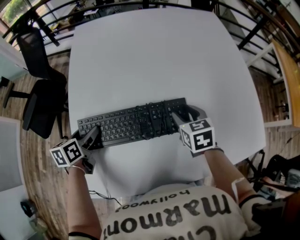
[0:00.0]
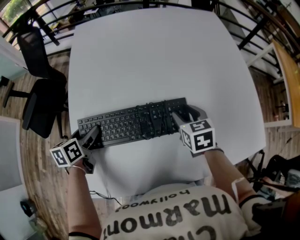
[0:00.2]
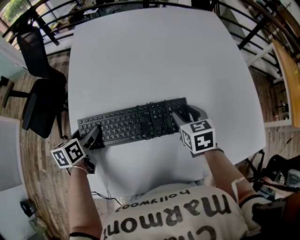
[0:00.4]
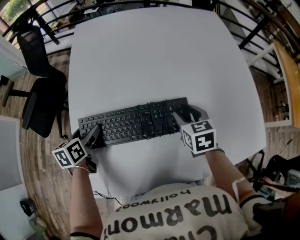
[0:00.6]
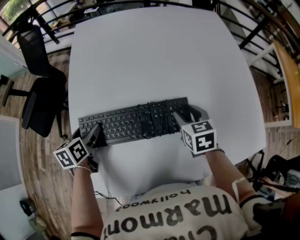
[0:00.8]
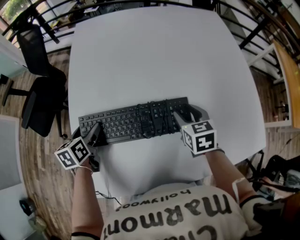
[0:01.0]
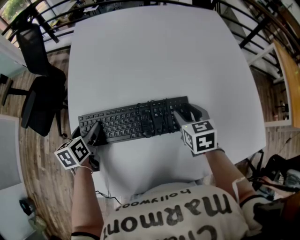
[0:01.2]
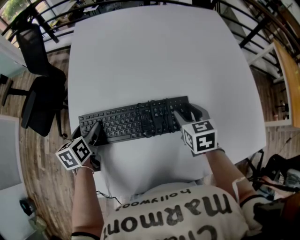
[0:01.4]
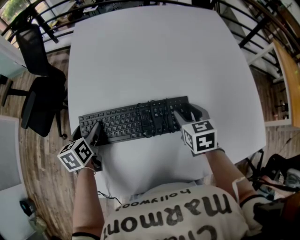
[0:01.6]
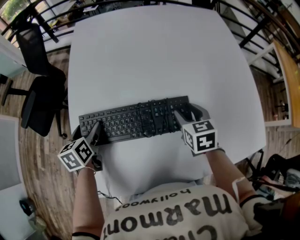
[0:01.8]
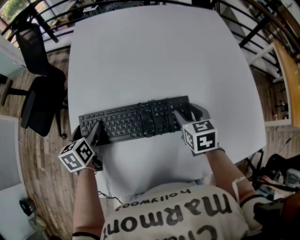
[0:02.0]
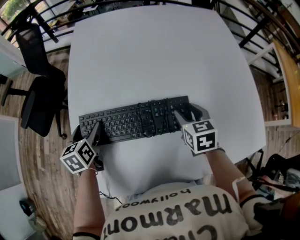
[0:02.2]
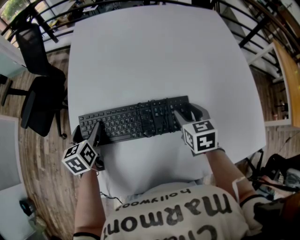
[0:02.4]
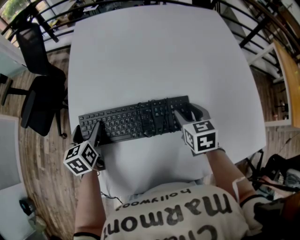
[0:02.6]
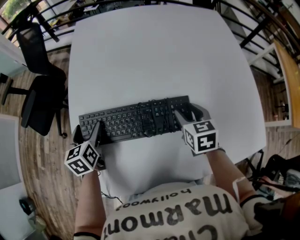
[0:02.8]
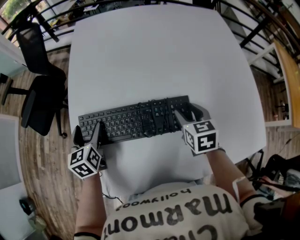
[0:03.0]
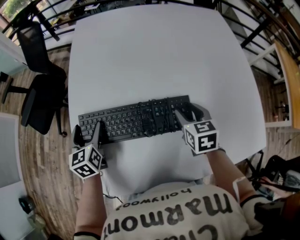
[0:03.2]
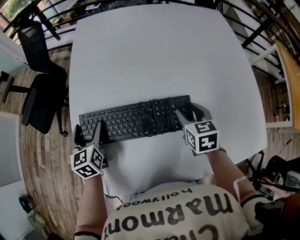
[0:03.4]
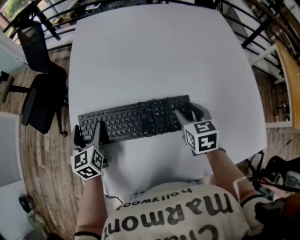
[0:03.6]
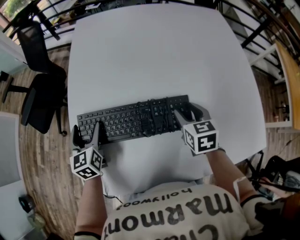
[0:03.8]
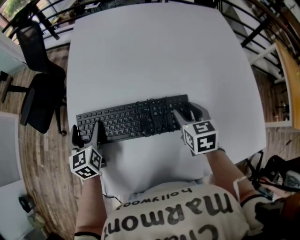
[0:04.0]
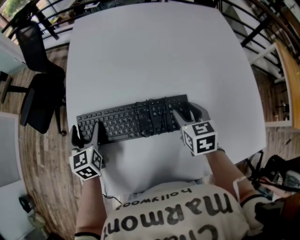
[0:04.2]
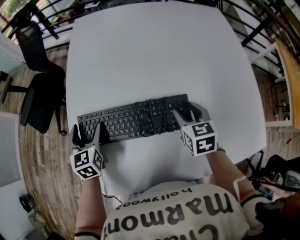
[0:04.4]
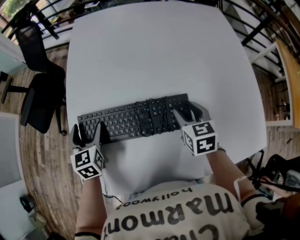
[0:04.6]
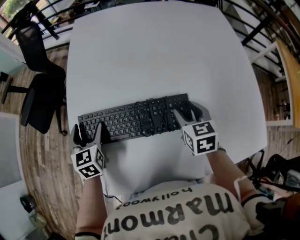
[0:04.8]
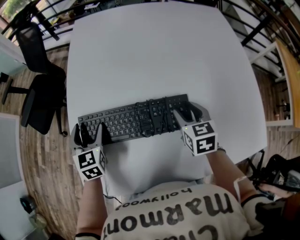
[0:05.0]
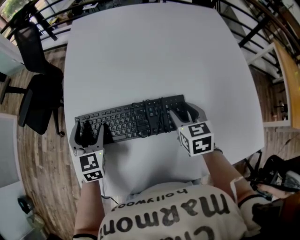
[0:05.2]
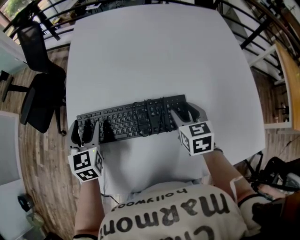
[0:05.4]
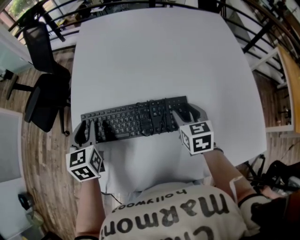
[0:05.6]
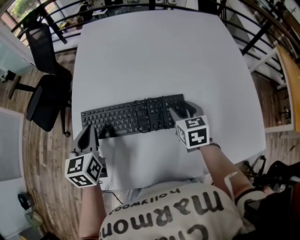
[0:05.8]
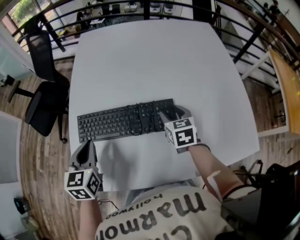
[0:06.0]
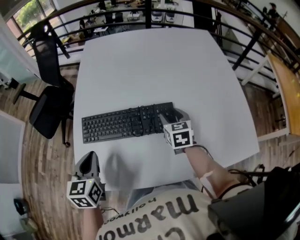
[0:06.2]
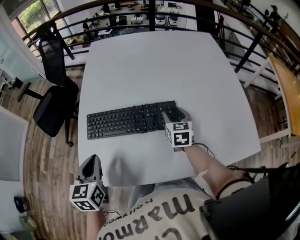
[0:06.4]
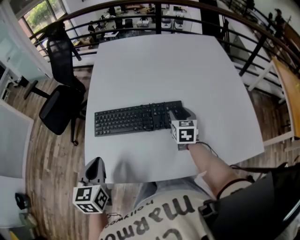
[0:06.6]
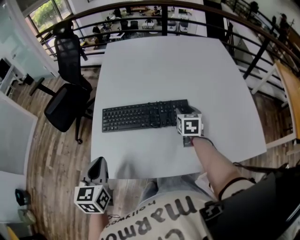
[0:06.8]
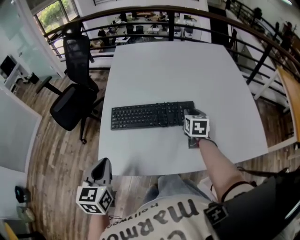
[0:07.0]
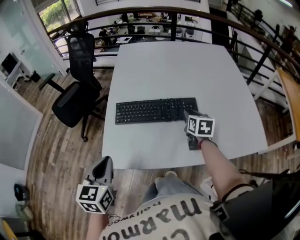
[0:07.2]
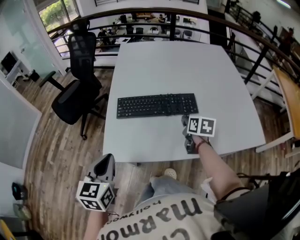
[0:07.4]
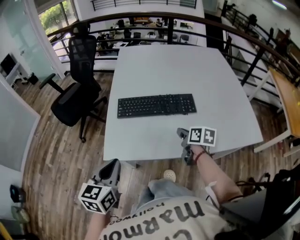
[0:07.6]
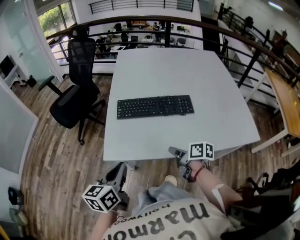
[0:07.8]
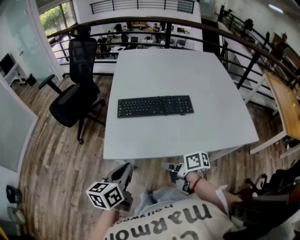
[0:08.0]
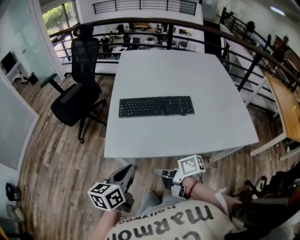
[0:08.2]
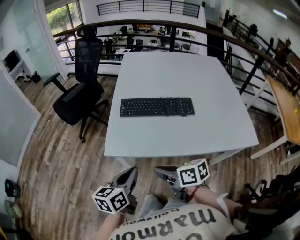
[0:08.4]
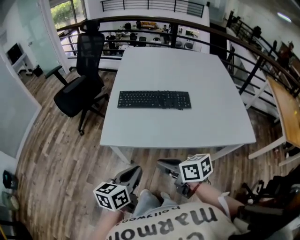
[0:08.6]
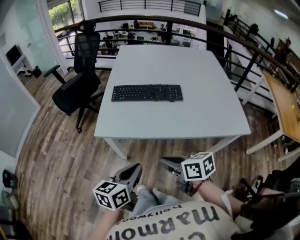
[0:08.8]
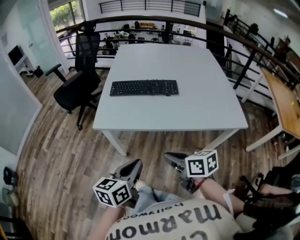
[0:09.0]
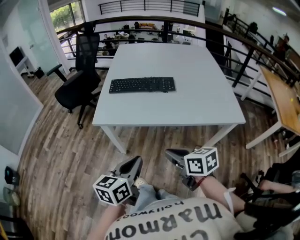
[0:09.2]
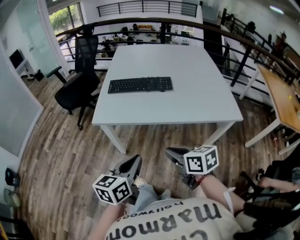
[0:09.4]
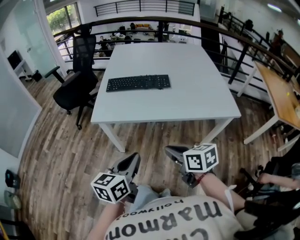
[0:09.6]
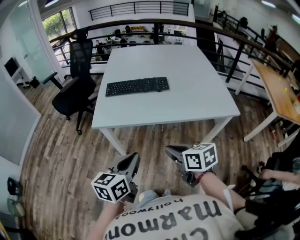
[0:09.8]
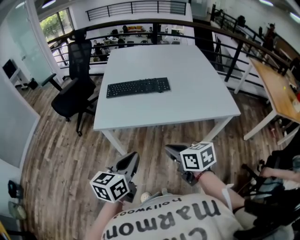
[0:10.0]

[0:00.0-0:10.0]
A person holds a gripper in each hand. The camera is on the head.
0:00.0 to 0:01.4: The grippers make only small movements.
0:01.4 to 0:02.8: There are only small adjustments of the grippers.
0:02.8 to 0:04.2: The grippers stay close to where they were, moving slightly.
0:04.2 to 0:05.8: The left gripper travels upward by roughly 5 cm, and closes.
0:05.8 to 0:07.2: The left gripper moves backward, some 25 cm. Meanwhile the right gripper is displaced backward by about 5 cm, and closes its fingers.
0:07.2 to 0:08.6: The left gripper moves backward and to the right, roughly 20 cm, and rotates about 30 degrees; the right gripper shifts about 40 cm backward and to the left, and swivels approximately 50 degrees.
0:08.6 to 0:10.0: The right gripper heads backward and to the right, covering some 15 cm, while the left gripper moves backward and upward, approximately 10 cm.

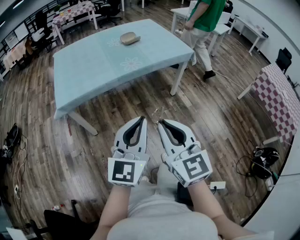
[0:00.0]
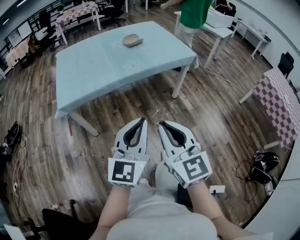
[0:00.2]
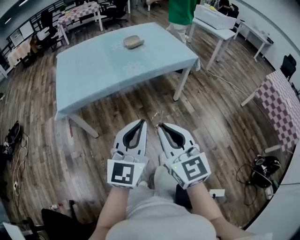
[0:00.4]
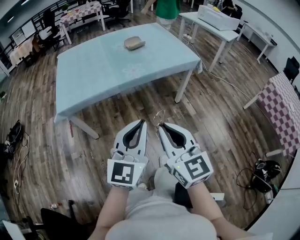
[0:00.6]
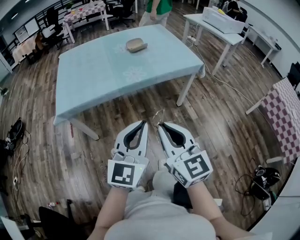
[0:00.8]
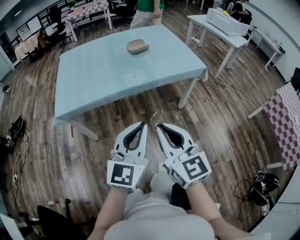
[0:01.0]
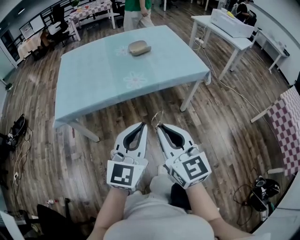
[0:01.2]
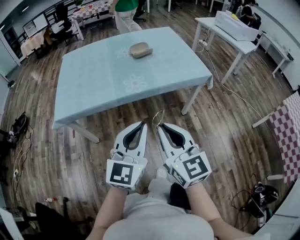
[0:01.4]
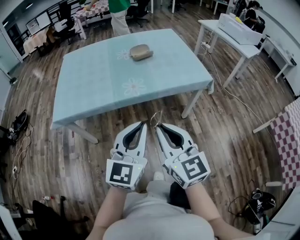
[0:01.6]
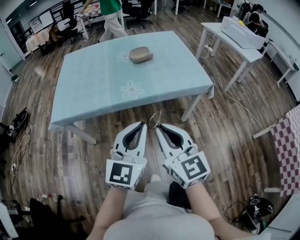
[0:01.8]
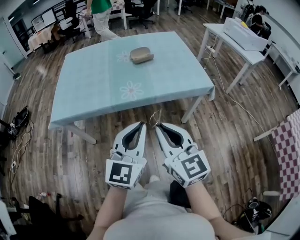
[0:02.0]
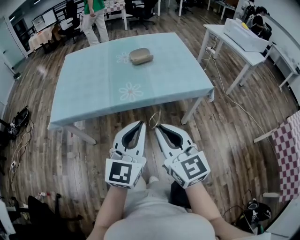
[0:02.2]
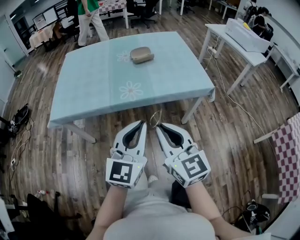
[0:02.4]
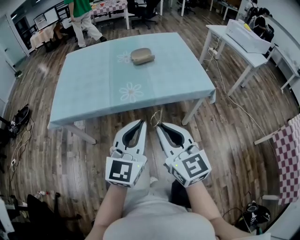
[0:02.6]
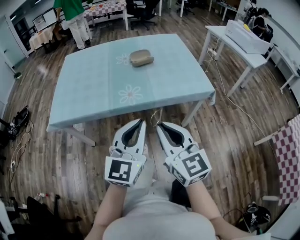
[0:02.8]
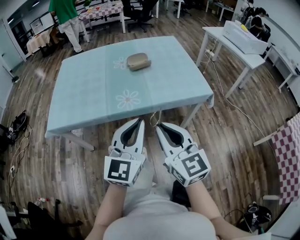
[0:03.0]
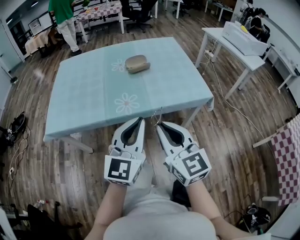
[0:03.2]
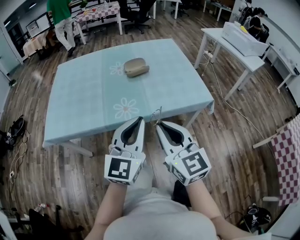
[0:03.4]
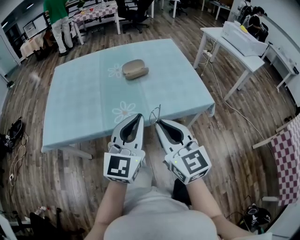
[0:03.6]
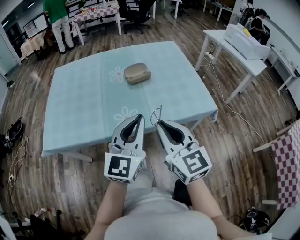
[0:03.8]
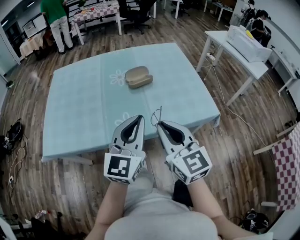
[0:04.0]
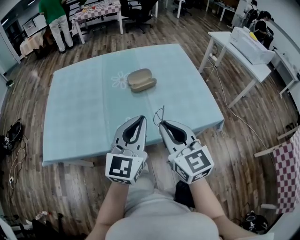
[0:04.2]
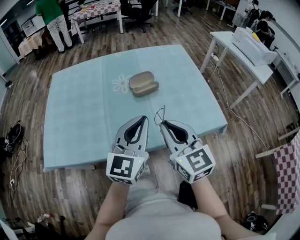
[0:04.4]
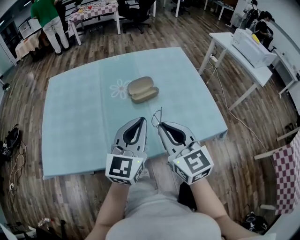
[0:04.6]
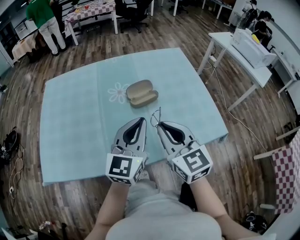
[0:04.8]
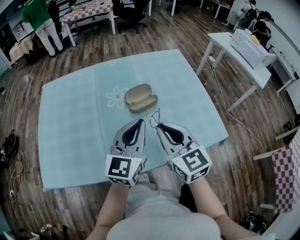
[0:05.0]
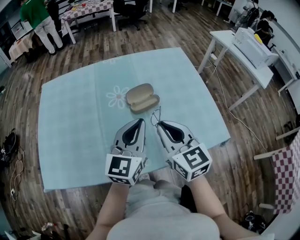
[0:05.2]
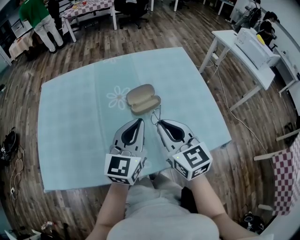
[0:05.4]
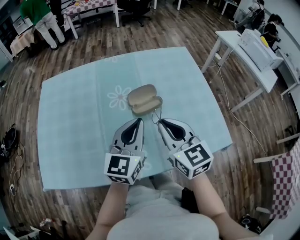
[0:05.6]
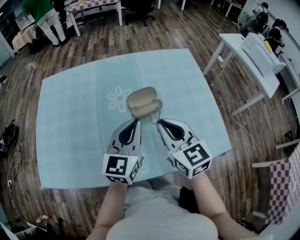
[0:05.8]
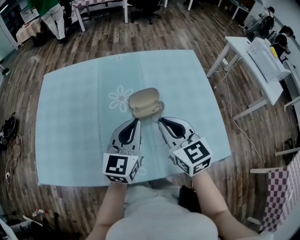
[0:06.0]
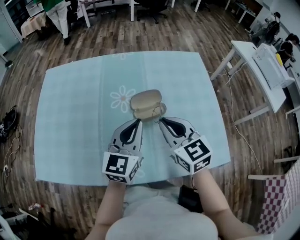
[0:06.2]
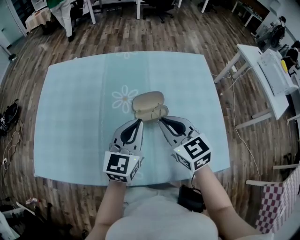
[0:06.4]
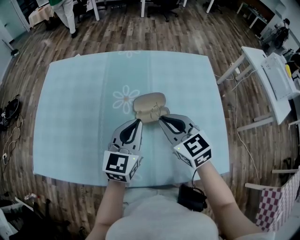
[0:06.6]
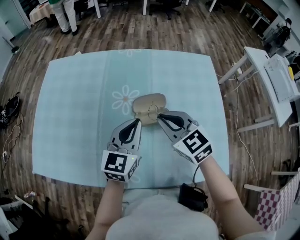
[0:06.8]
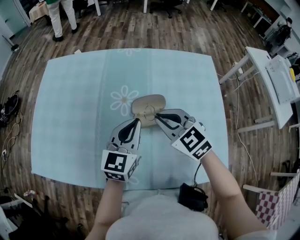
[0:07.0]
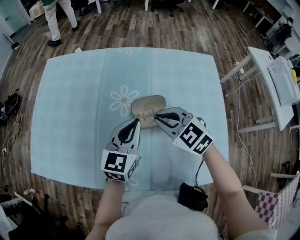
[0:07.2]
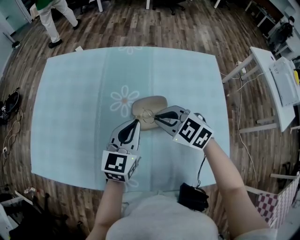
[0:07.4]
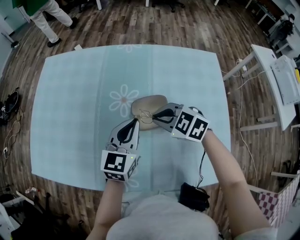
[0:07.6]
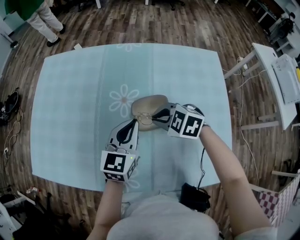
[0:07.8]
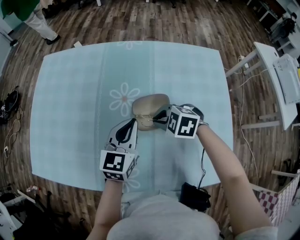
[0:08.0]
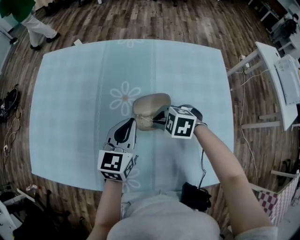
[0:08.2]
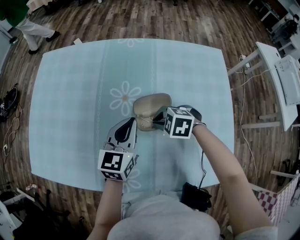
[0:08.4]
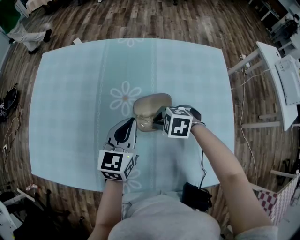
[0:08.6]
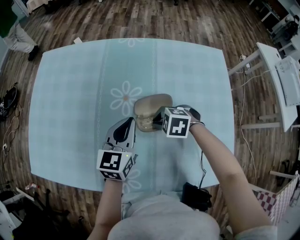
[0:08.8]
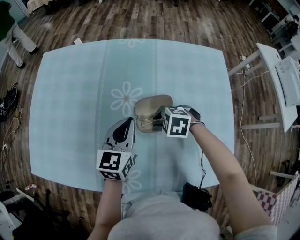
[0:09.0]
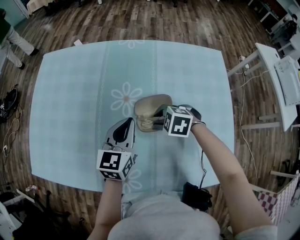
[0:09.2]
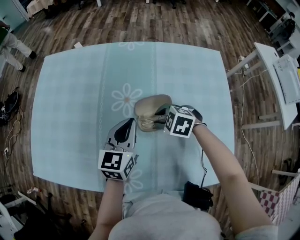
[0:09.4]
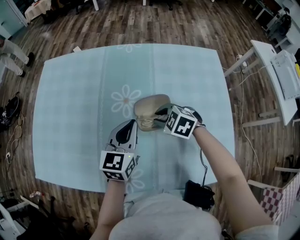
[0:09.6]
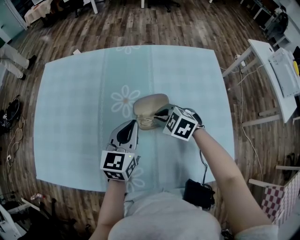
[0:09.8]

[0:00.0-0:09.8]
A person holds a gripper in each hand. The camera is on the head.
0:00.0 to 0:01.4: The two grippers go about 20 cm forward and to the right.
0:01.4 to 0:02.8: Both grippers move forward and to the right, about 10 cm.
0:02.8 to 0:04.2: Both grippers move forward, some 25 cm.
0:04.2 to 0:05.6: Both grippers move forward, approximately 20 cm.
0:05.6 to 0:07.0: Both grippers move forward and downward, some 15 cm. The right gripper rotates some 40 degrees.
0:07.0 to 0:08.4: The left gripper shifts approximately 5 cm downward. The right gripper goes roughly 15 cm downward, and angles its fingers downward, by some 30 degrees.
0:08.4 to 0:09.8: The right gripper opens and closes again.

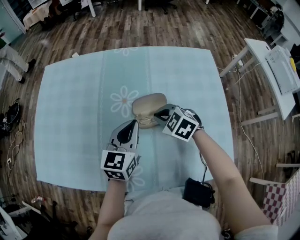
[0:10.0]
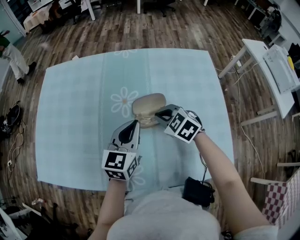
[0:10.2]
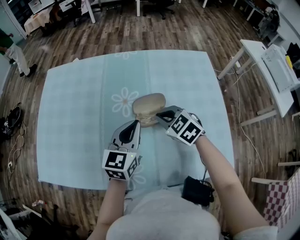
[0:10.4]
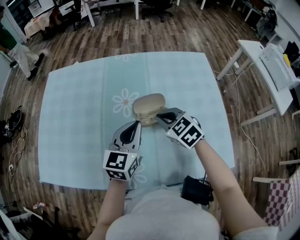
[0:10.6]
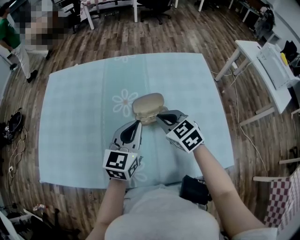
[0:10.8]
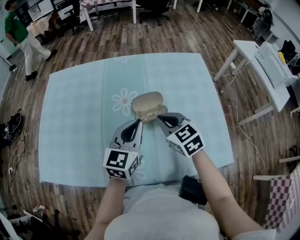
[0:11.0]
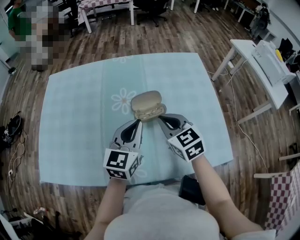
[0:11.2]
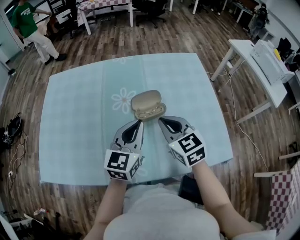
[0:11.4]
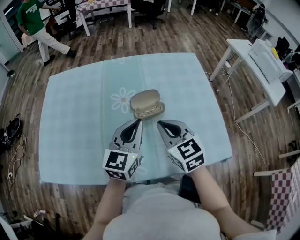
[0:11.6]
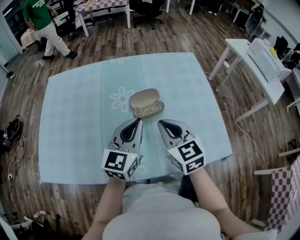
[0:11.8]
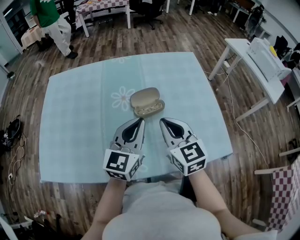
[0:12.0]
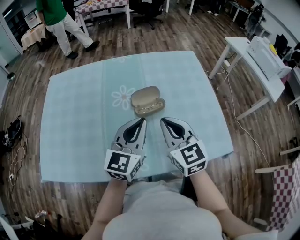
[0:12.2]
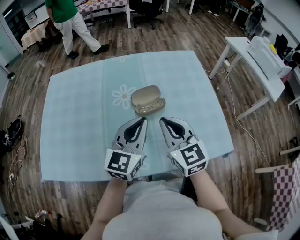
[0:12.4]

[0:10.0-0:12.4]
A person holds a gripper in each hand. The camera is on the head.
0:10.0 to 0:11.2: The left gripper shifts about 10 cm backward and upward, while the right gripper travels upward and backward by some 15 cm, and rotates some 40 degrees.
0:11.2 to 0:12.4: The left gripper shifts by roughly 5 cm, while the right gripper is displaced backward and upward by approximately 10 cm.

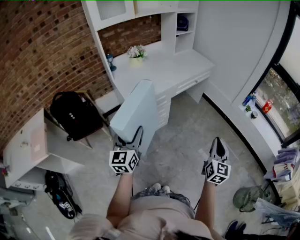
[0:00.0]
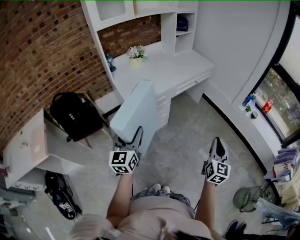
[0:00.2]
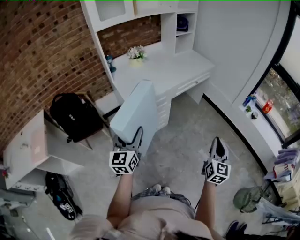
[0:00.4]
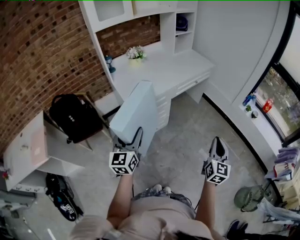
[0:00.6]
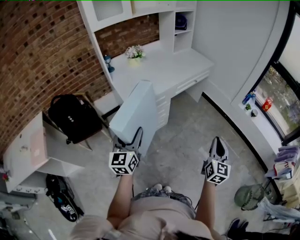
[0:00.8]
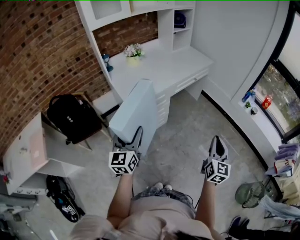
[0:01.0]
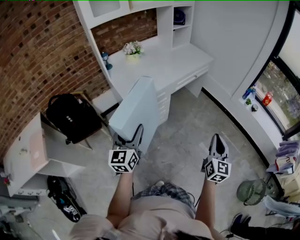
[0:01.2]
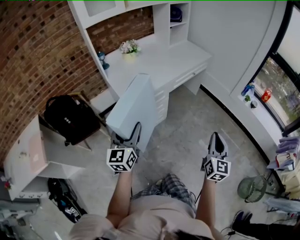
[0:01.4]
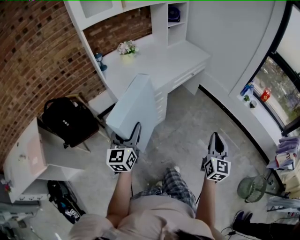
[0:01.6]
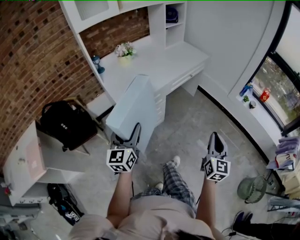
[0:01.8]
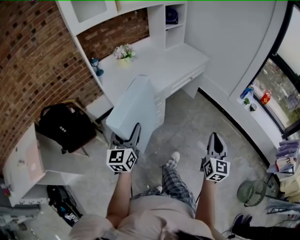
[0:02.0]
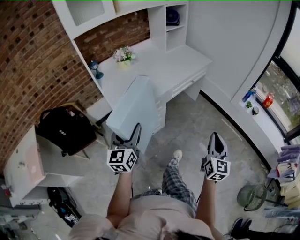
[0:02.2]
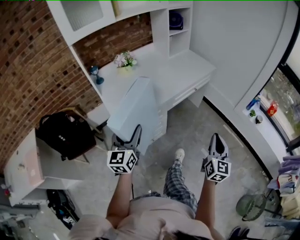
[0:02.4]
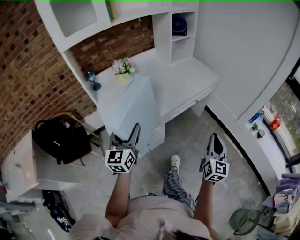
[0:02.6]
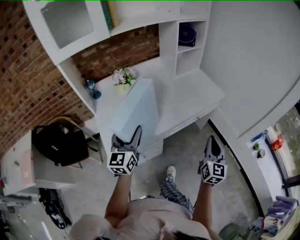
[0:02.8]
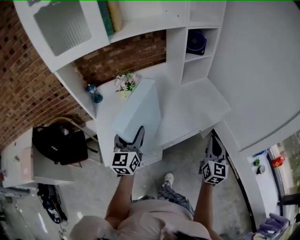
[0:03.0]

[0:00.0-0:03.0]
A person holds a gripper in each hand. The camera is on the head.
0:00.0 to 0:01.6: The left gripper heads forward, covering about 5 cm.
0:01.6 to 0:03.0: The two grippers travel together, forward, approximately 50 cm.
